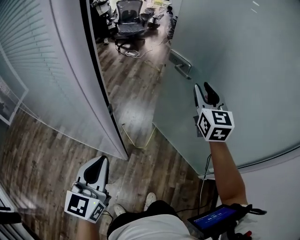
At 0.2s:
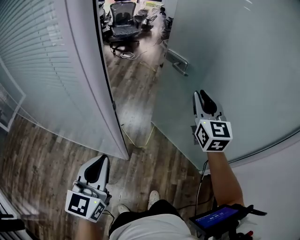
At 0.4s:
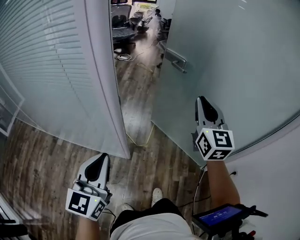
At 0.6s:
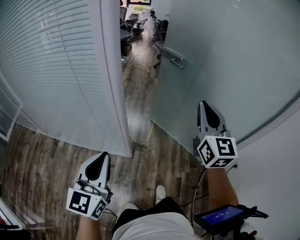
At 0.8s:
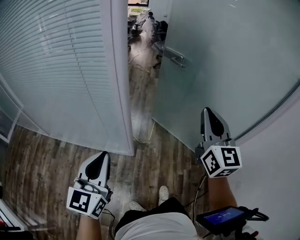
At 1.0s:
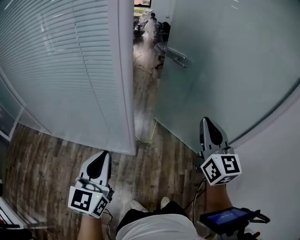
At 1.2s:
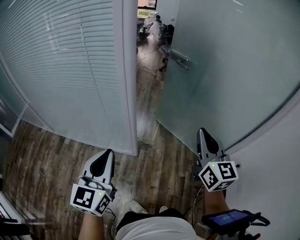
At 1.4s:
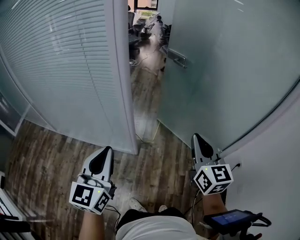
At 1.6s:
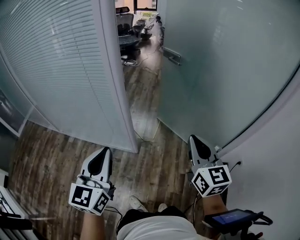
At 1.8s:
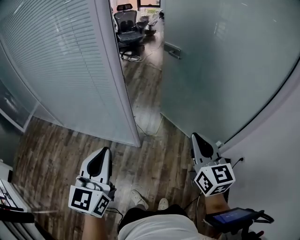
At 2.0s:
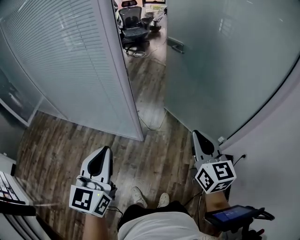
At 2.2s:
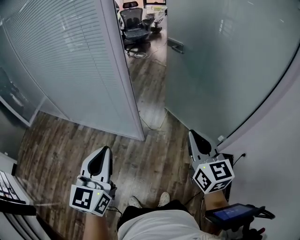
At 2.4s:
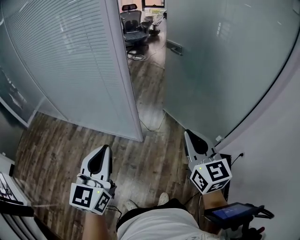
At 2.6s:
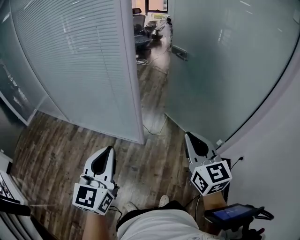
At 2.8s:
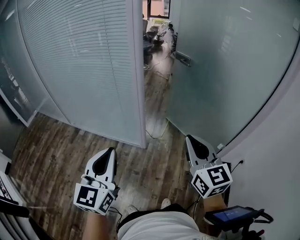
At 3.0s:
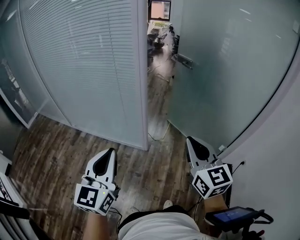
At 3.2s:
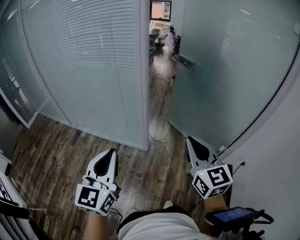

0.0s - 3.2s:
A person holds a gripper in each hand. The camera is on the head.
0.0s - 1.6s: The left gripper heads backward, covering approximately 20 cm; the right gripper goes some 40 cm backward, and closes its fingers.
1.6s - 3.2s: The left gripper moves backward and to the left, about 15 cm, while the right gripper shifts approximately 15 cm to the left and backward.

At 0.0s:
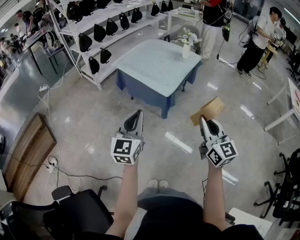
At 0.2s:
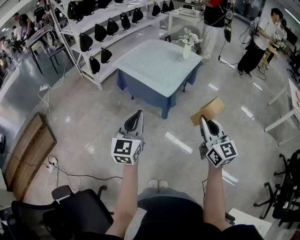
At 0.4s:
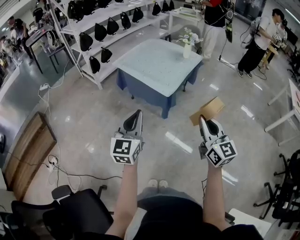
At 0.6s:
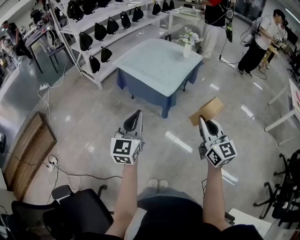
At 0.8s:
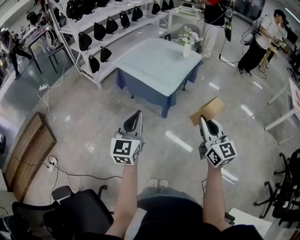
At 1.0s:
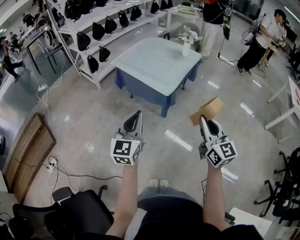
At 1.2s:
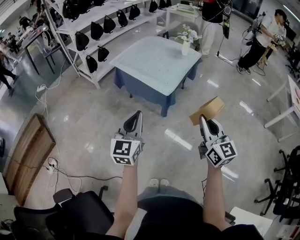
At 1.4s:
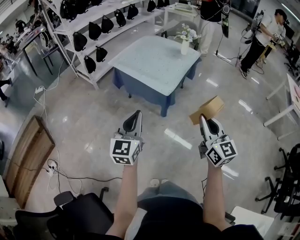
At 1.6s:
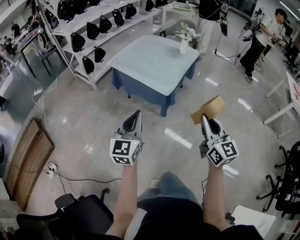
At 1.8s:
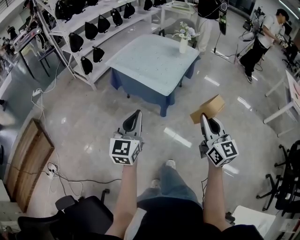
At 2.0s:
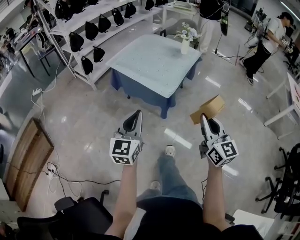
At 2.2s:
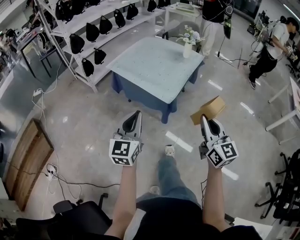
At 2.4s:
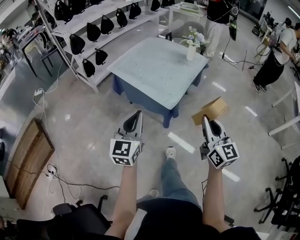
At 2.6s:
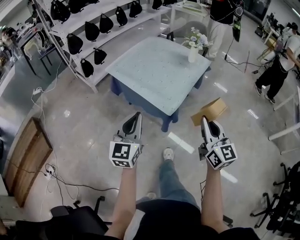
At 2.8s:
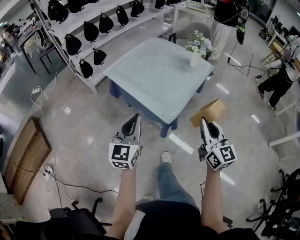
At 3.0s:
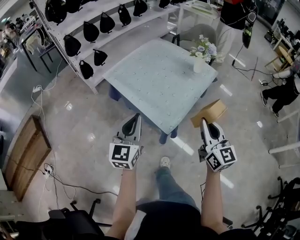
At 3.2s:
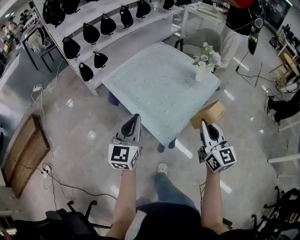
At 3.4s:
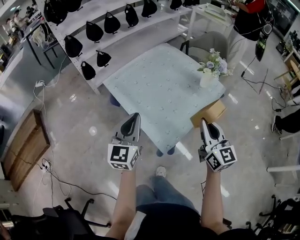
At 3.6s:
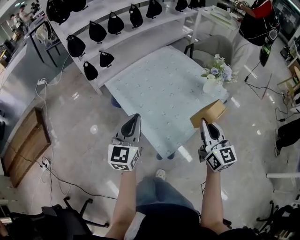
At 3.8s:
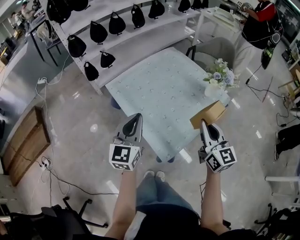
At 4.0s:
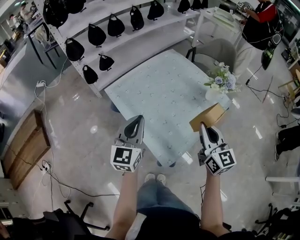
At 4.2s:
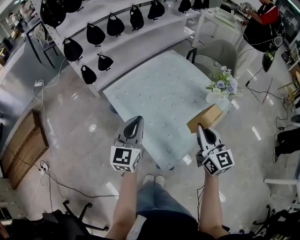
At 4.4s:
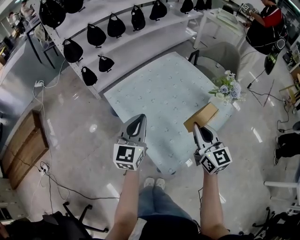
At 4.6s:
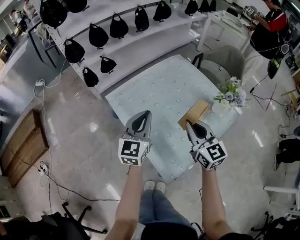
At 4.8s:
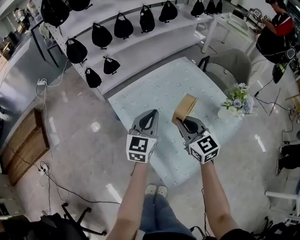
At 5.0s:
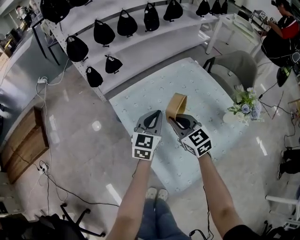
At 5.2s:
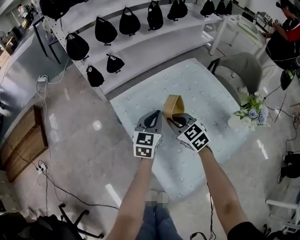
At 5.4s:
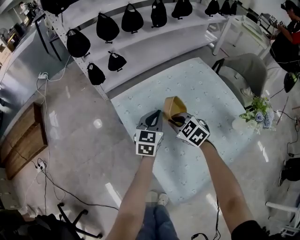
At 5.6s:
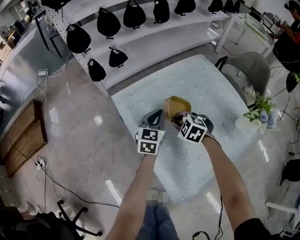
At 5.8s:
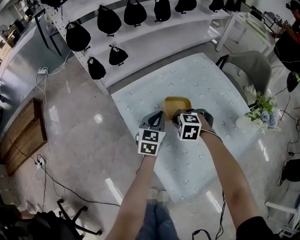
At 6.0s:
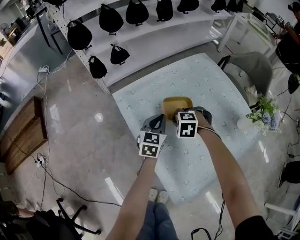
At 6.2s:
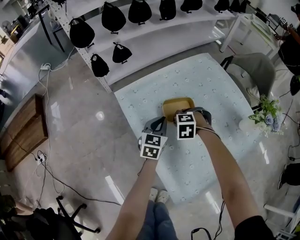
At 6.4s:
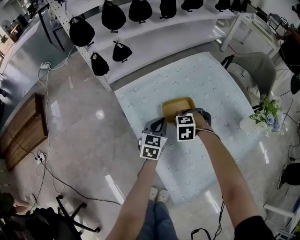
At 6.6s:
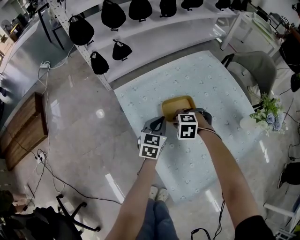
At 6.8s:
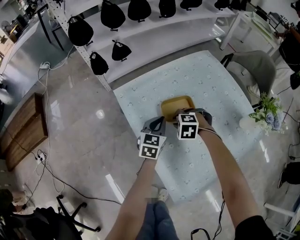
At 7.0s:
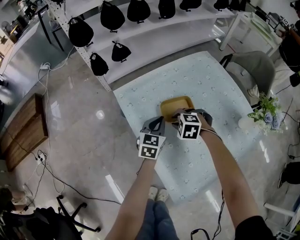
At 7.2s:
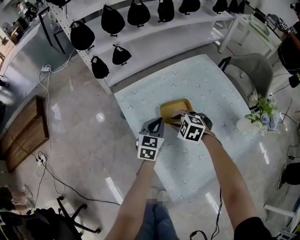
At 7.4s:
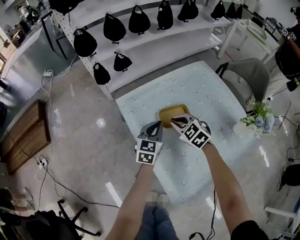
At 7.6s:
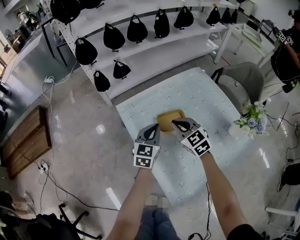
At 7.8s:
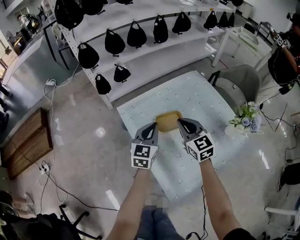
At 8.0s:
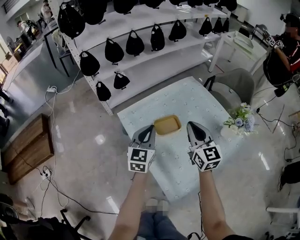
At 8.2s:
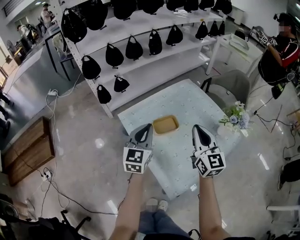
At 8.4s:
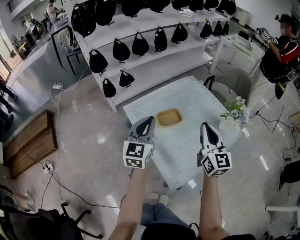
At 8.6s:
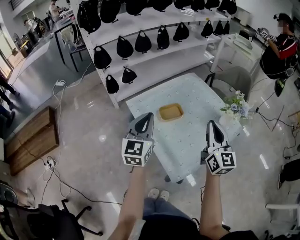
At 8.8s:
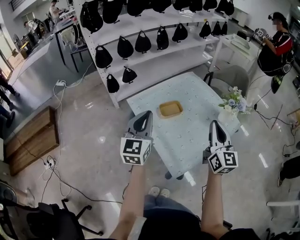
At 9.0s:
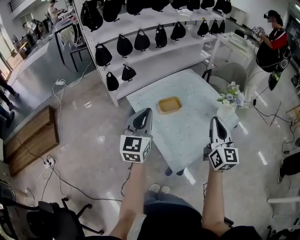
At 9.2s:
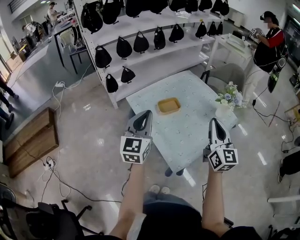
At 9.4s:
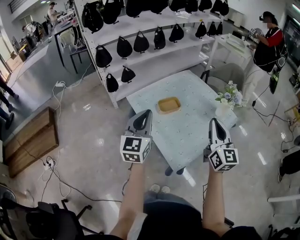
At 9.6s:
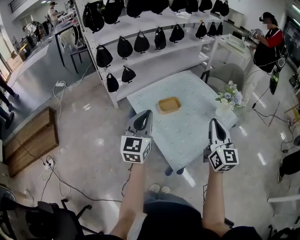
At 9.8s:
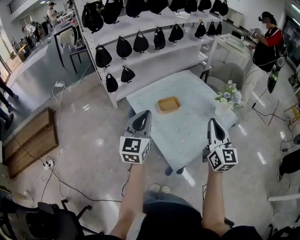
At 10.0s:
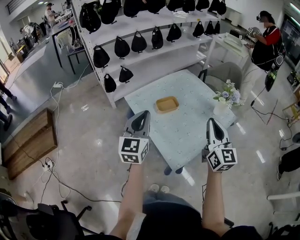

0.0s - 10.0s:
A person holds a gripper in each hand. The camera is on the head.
0.0s - 1.4s: There are only small adjustments of the grippers.
1.4s - 2.8s: Both grippers move forward, about 25 cm.
2.8s - 4.2s: The grippers both shift forward by about 30 cm.
4.2s - 5.8s: The right gripper heads downward, forward and to the left, covering some 40 cm, and tilts its fingers approximately 60 degrees downward; the left gripper travels downward and forward by approximately 30 cm.
5.8s - 7.2s: The grippers move only a little.
7.2s - 8.6s: The right gripper goes about 40 cm upward, backward and to the right, tilts its fingers about 60 degrees upward, and closes, while the left gripper is displaced upward and backward by some 35 cm, and swivels roughly 20 degrees.
8.6s - 10.0s: The two grippers go roughly 10 cm backward.

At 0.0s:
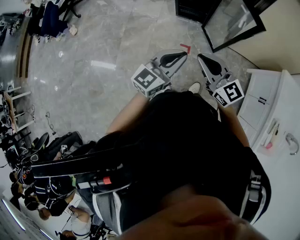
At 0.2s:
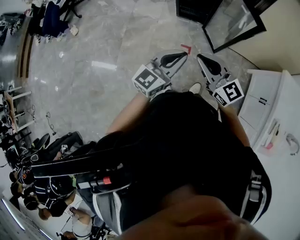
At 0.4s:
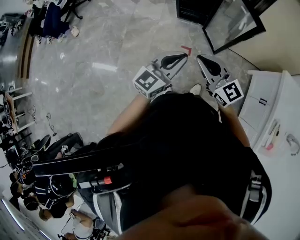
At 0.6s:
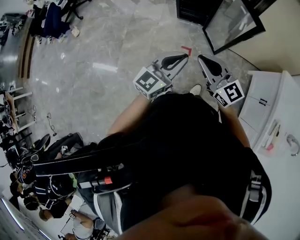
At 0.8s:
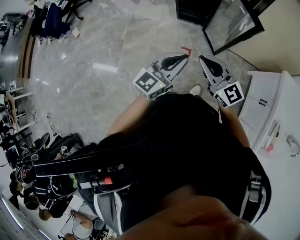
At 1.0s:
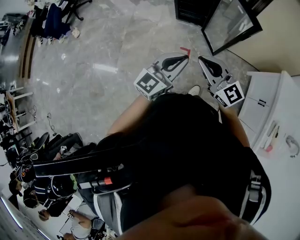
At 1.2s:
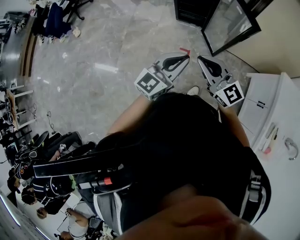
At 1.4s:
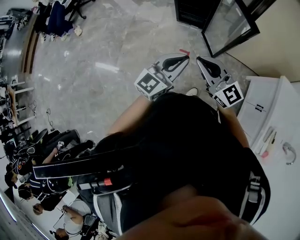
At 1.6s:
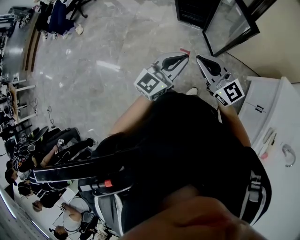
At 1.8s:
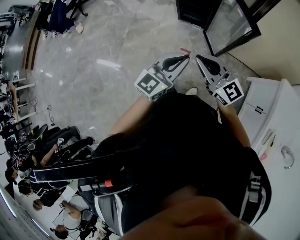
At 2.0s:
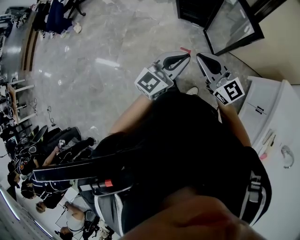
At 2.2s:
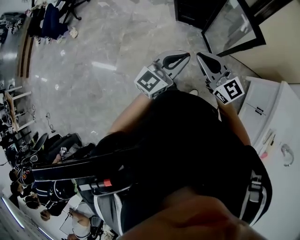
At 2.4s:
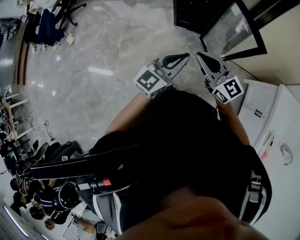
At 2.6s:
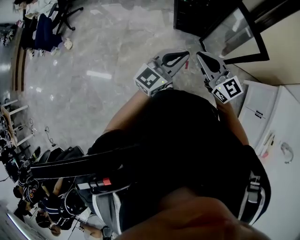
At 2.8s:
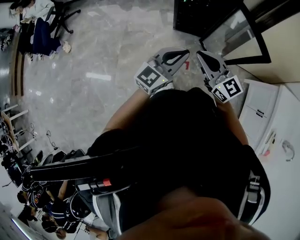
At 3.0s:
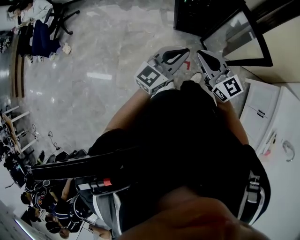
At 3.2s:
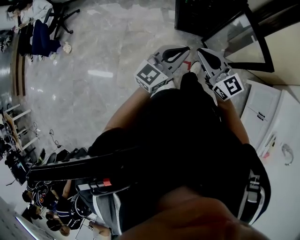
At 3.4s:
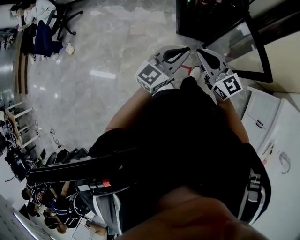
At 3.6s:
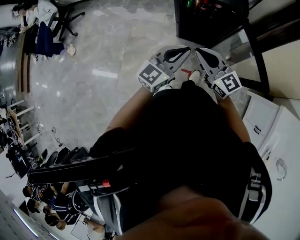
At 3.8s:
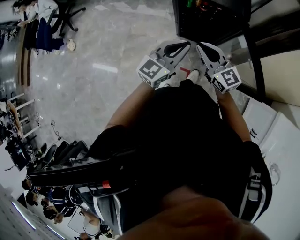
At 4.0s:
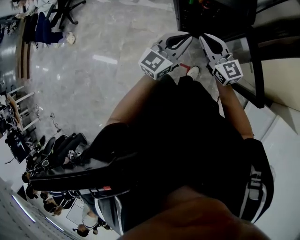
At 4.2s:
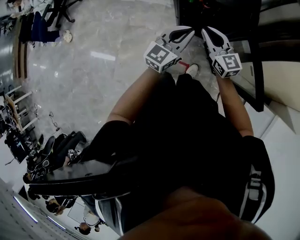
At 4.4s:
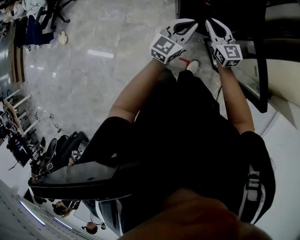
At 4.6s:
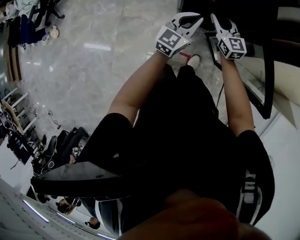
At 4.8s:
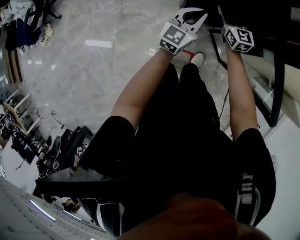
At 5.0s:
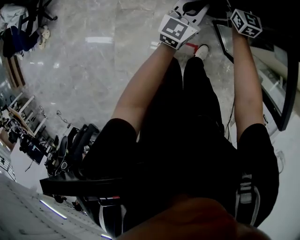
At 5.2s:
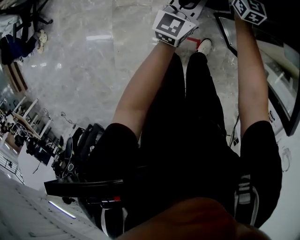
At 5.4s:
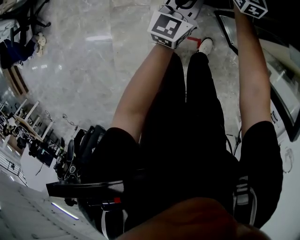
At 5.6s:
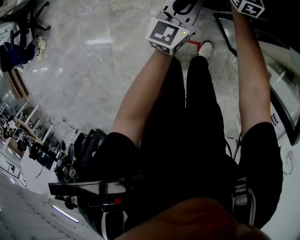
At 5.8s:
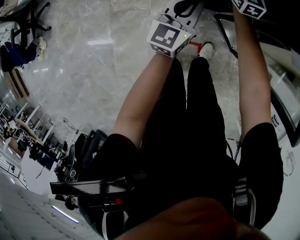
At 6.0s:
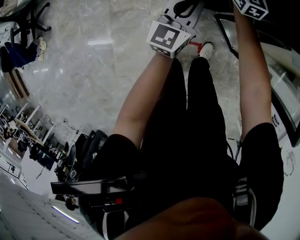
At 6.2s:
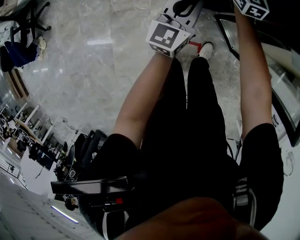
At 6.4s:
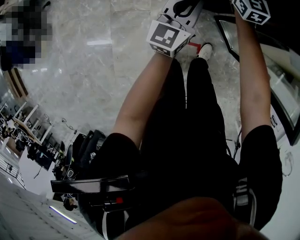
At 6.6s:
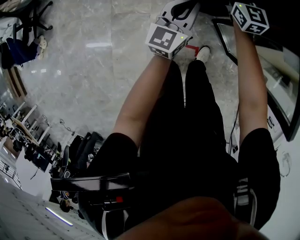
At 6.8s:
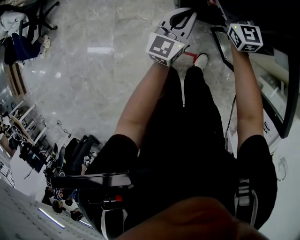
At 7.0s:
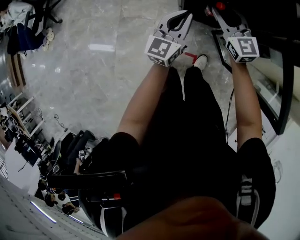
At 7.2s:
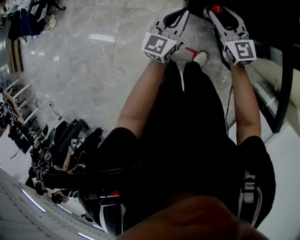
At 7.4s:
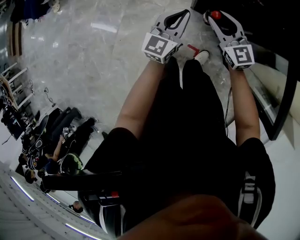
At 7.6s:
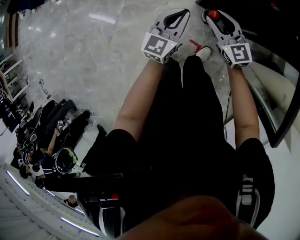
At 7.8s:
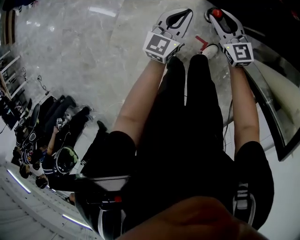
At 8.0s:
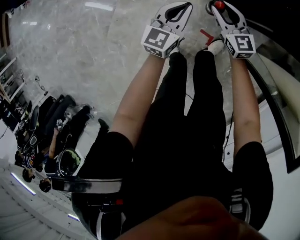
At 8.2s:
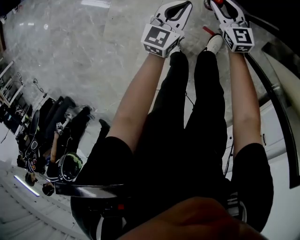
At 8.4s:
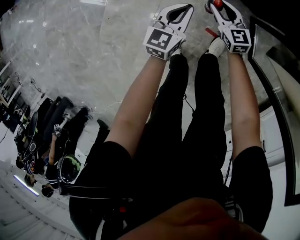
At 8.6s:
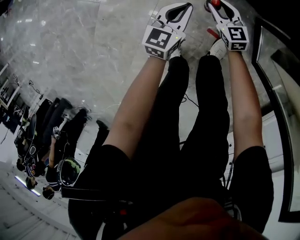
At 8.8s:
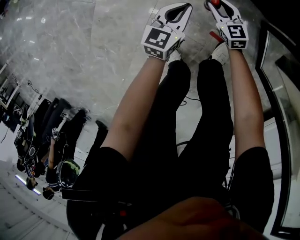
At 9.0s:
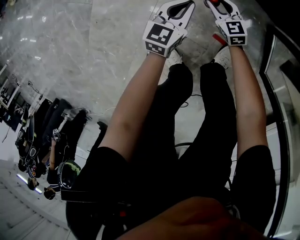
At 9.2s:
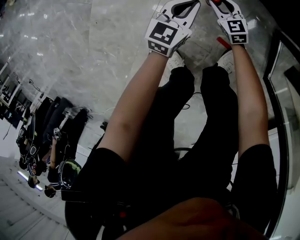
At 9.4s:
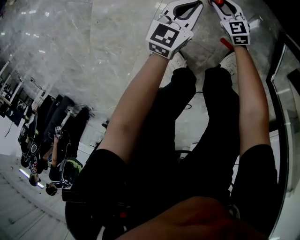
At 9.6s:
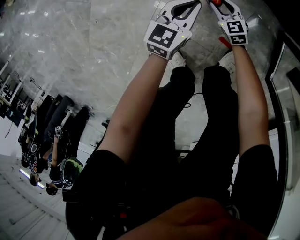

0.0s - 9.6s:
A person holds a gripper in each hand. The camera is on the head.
0.0s - 1.6s: Both grippers move to the right, about 5 cm.
1.6s - 3.2s: Both grippers move forward and to the left, roughly 30 cm.
3.2s - 4.8s: The grippers both shift forward and downward by some 40 cm. The right gripper turns by approximately 20 degrees, and opens its fingers.
4.8s - 6.4s: The left gripper goes some 10 cm downward; the right gripper travels forward and downward by some 10 cm, and opens and closes again.
6.4s - 8.0s: The right gripper ends up some 35 cm from where it was, and swivels about 30 degrees, while the left gripper changes place by approximately 30 cm, and turns by some 20 degrees.
8.0s - 9.6s: The grippers both shift downward by roughly 50 cm. The right gripper rotates approximately 20 degrees.

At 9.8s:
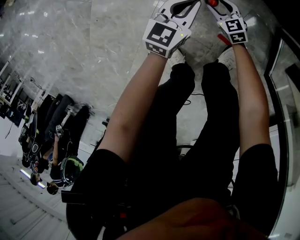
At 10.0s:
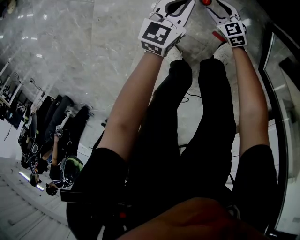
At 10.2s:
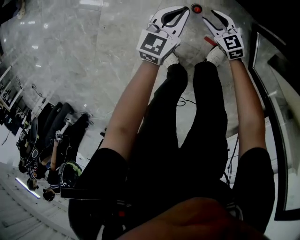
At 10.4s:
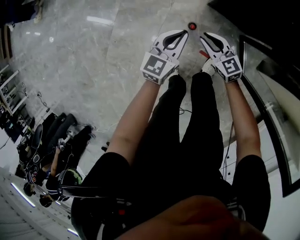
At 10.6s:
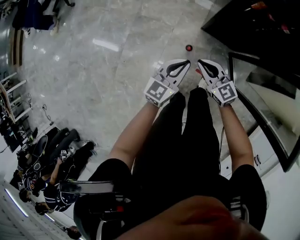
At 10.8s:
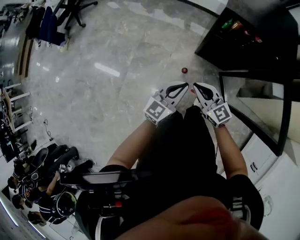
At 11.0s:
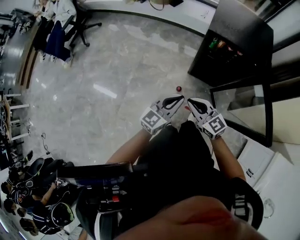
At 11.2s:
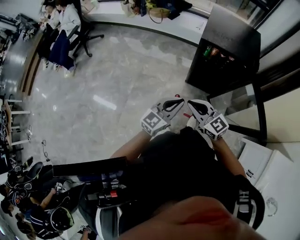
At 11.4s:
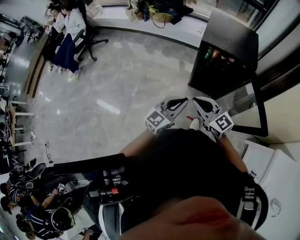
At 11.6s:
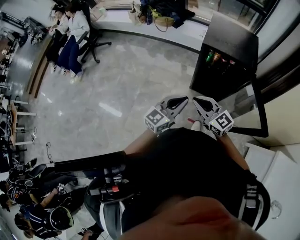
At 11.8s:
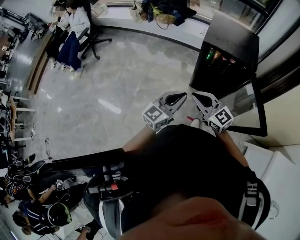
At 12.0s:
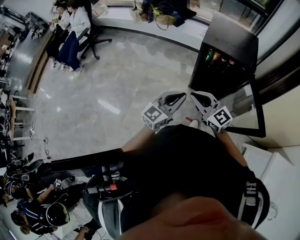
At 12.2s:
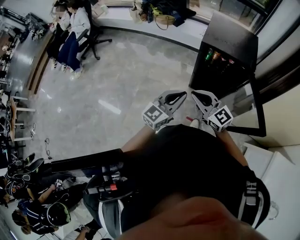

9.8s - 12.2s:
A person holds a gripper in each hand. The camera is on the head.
9.8s - 11.0s: The two grippers go about 70 cm upward. The right gripper tilts its fingers about 30 degrees upward, and closes its fingers. The left gripper swivels approximately 30 degrees.
11.0s - 12.2s: The two grippers go approximately 15 cm upward.
